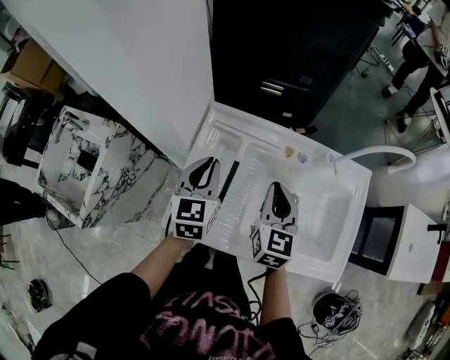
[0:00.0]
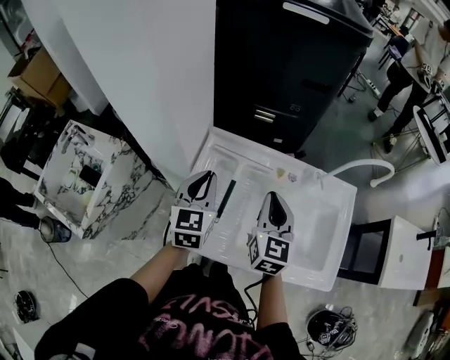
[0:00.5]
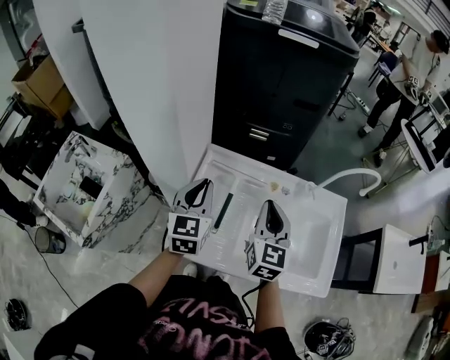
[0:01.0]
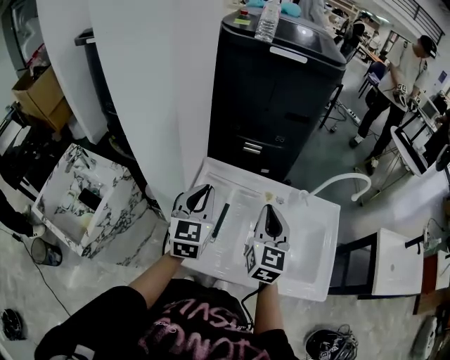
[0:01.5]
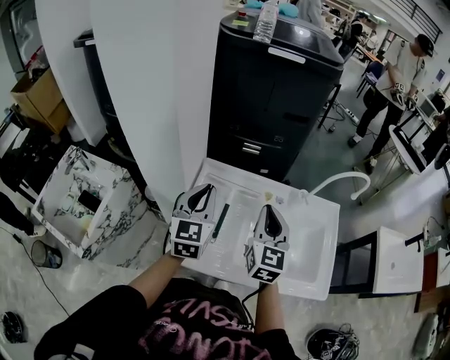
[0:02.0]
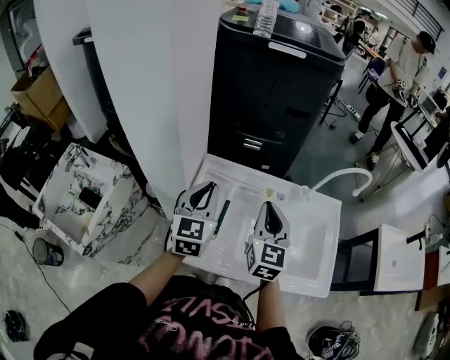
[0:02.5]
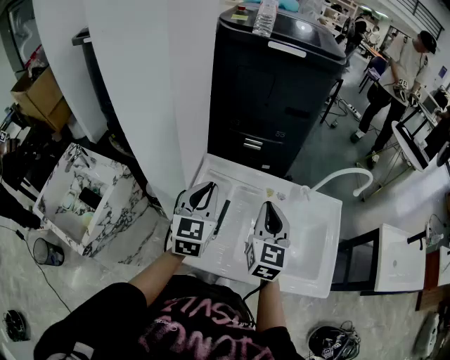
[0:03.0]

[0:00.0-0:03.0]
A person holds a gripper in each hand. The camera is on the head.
0:00.0 to 0:01.5: Both grippers move upward, approximately 10 cm.
0:01.5 to 0:03.0: Neither gripper changes place.

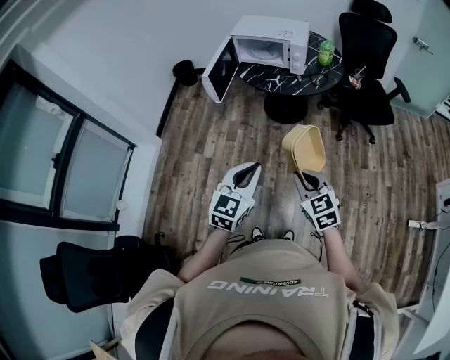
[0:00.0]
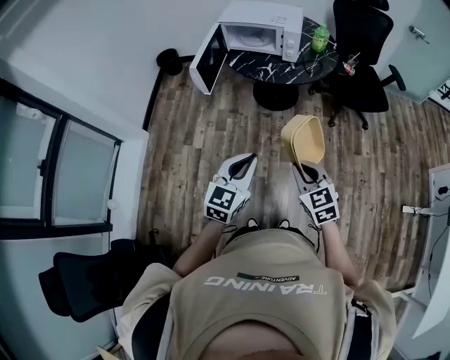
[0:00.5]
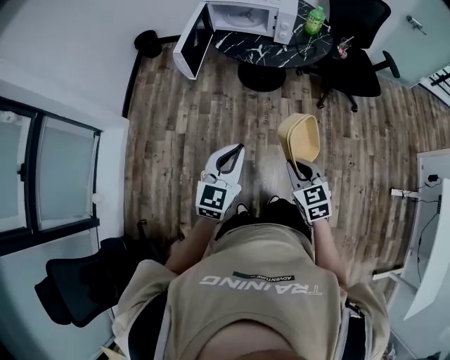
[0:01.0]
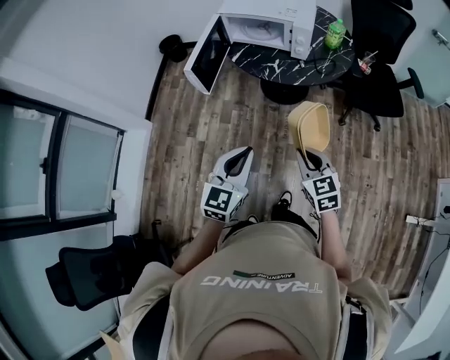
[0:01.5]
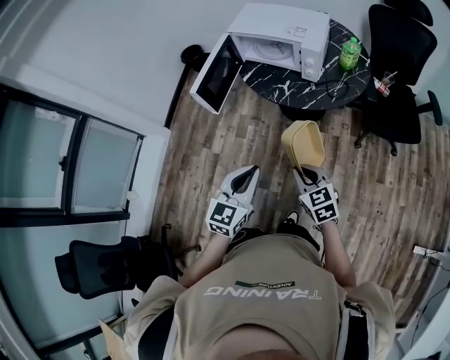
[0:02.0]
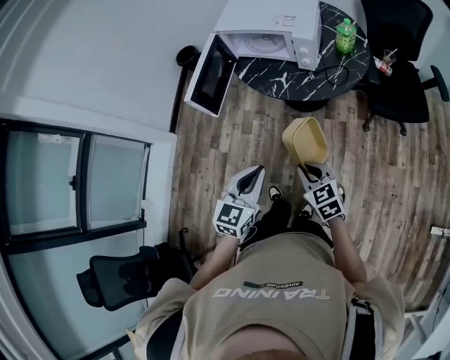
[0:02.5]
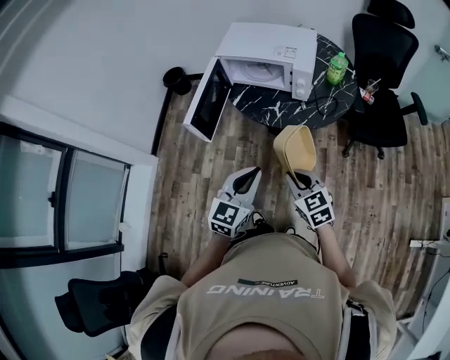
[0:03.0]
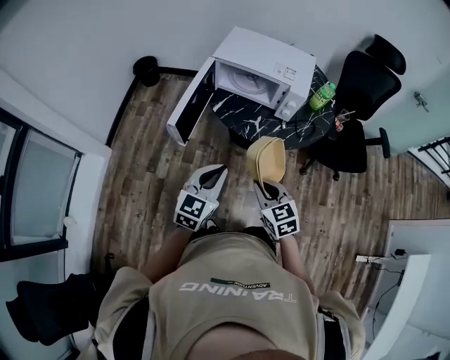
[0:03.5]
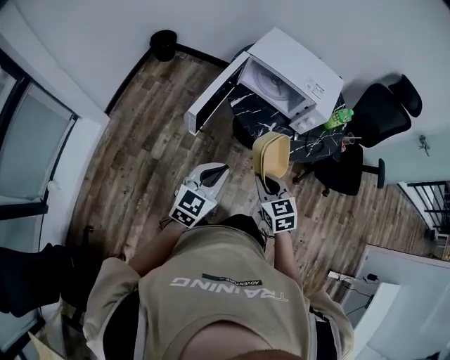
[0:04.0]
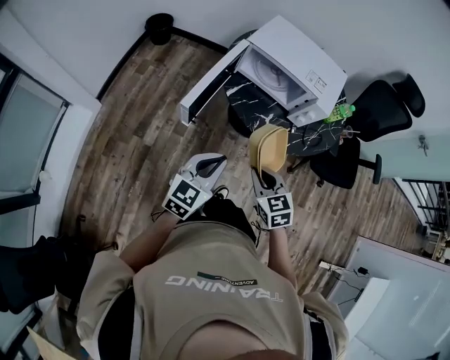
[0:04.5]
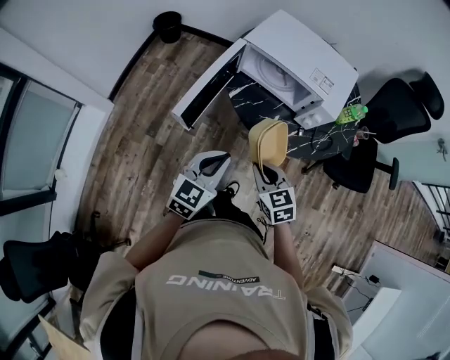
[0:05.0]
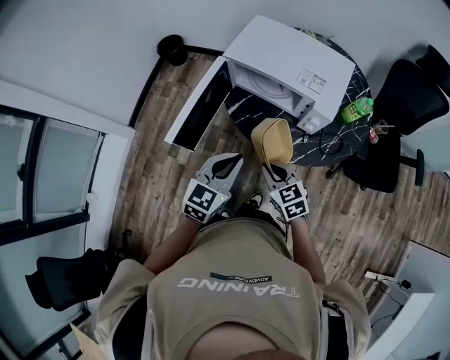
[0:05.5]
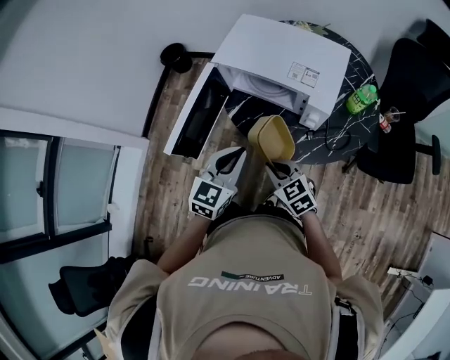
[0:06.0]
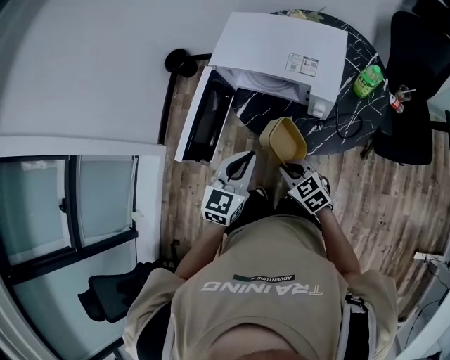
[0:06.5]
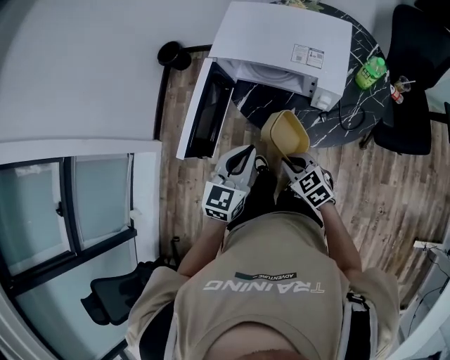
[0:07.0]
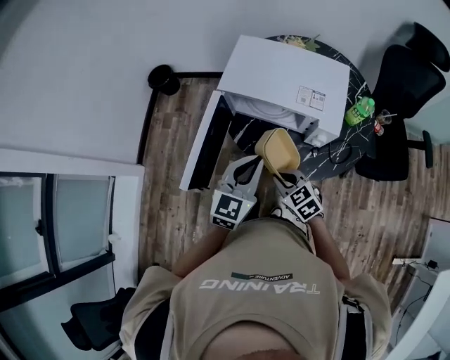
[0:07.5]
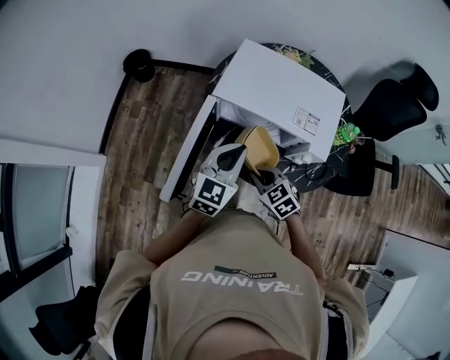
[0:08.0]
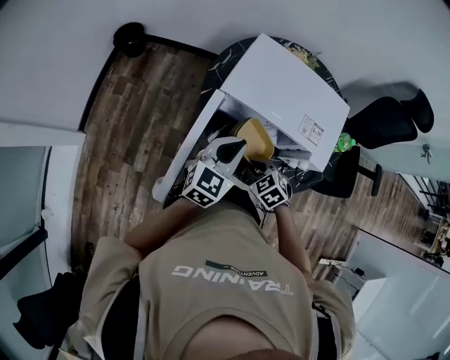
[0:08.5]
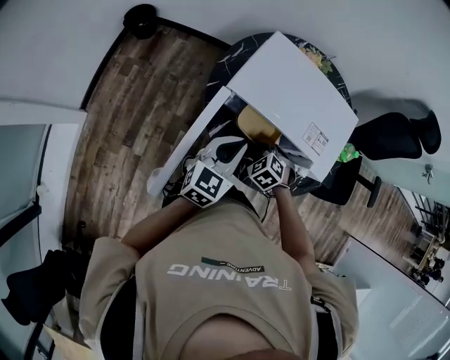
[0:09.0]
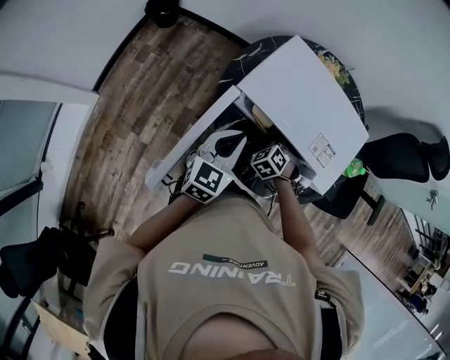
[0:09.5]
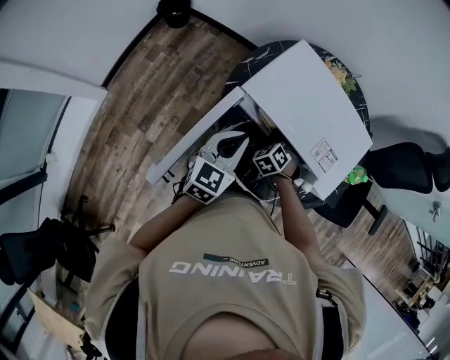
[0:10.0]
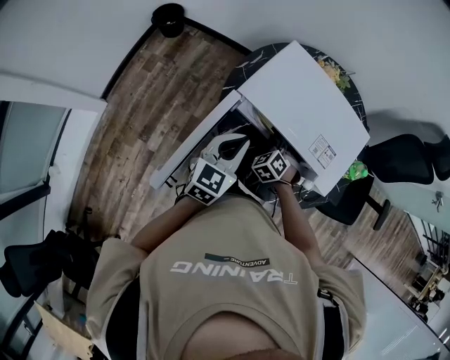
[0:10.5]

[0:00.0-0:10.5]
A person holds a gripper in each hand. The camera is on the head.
0:00.0 to 0:02.0: Both grippers move forward, some 20 cm.
0:02.0 to 0:04.0: Both grippers travel together forward and to the left, approximately 20 cm.
0:04.0 to 0:06.5: The right gripper is displaced forward, to the right and downward by approximately 15 cm. The left gripper goes roughly 20 cm forward and to the right.
0:06.5 to 0:08.5: The grippers both shift forward by about 20 cm. The right gripper rotates about 30 degrees.
0:08.5 to 0:10.5: The right gripper goes roughly 15 cm forward, and turns by roughly 30 degrees.

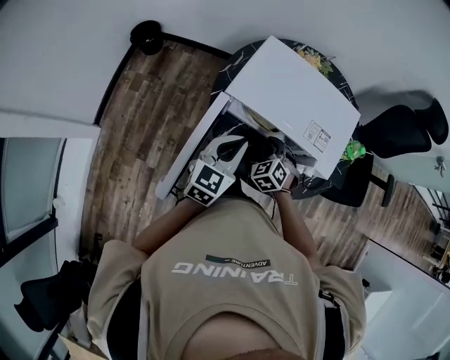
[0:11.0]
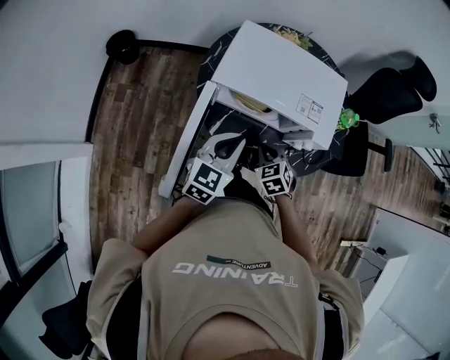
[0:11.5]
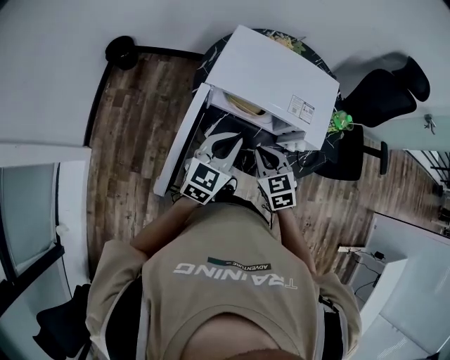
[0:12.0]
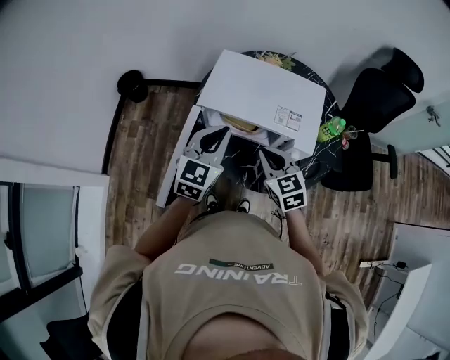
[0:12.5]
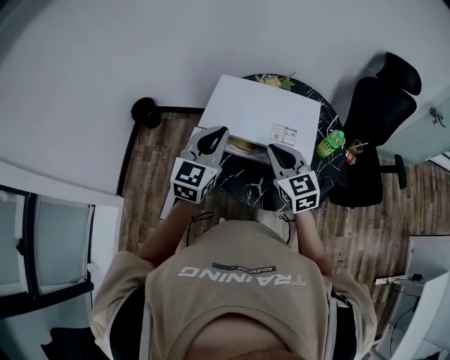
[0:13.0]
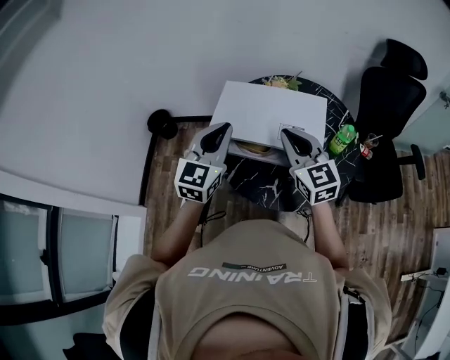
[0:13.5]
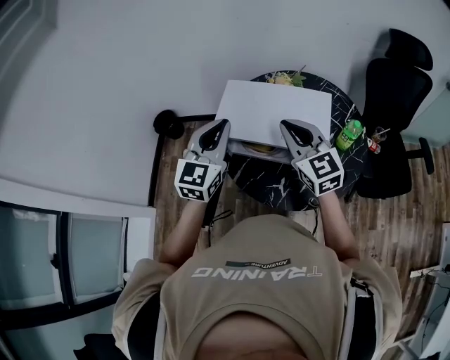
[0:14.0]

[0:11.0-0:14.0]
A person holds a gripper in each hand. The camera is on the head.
0:11.0 to 0:12.5: The right gripper shifts some 15 cm upward and backward, and changes its angle by some 40 degrees; the left gripper travels upward by approximately 10 cm.
0:12.5 to 0:14.0: The left gripper is displaced upward by about 10 cm; the right gripper is displaced upward and forward by approximately 15 cm, and rotates approximately 20 degrees.

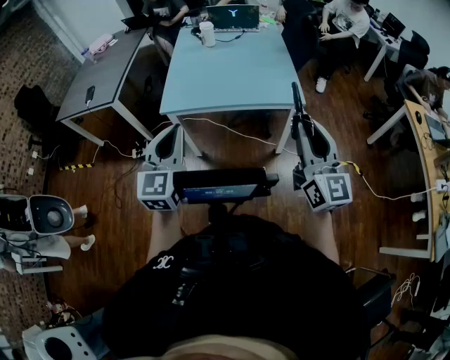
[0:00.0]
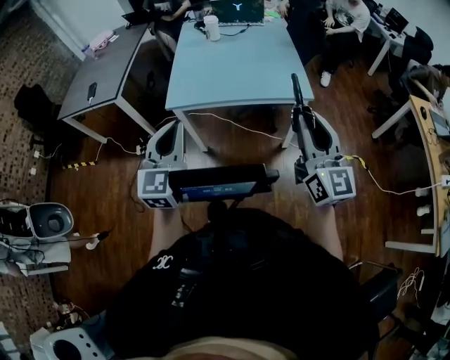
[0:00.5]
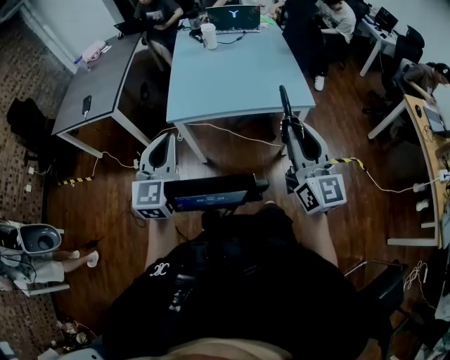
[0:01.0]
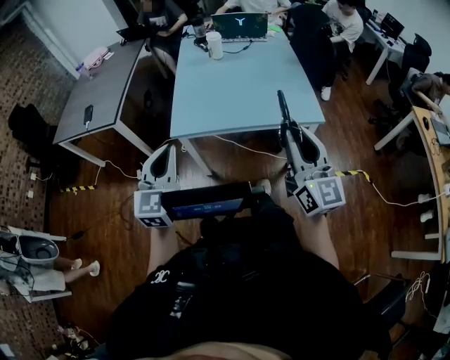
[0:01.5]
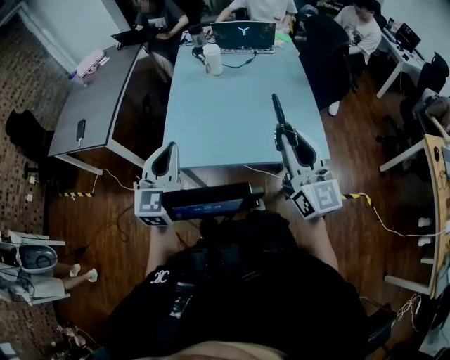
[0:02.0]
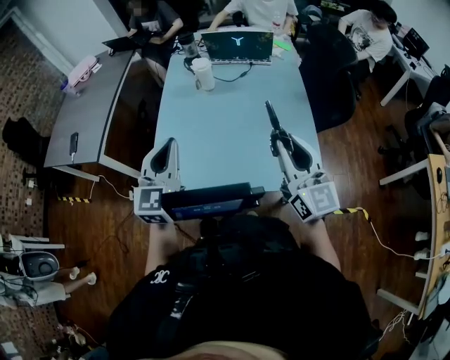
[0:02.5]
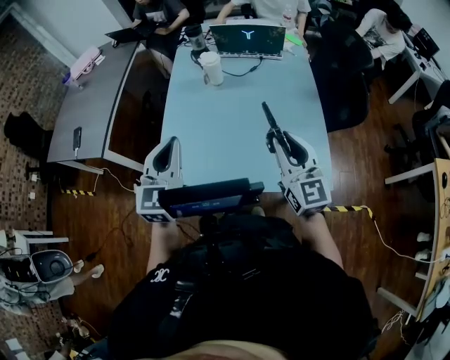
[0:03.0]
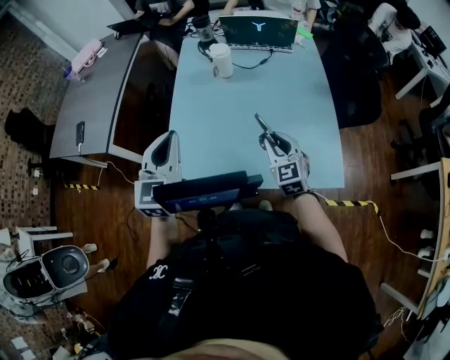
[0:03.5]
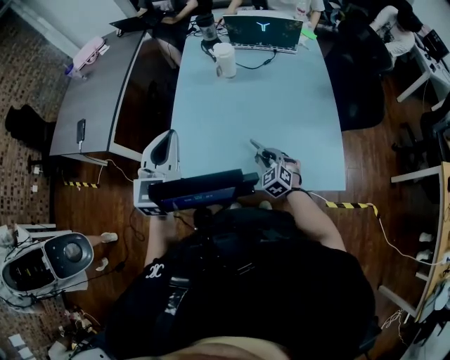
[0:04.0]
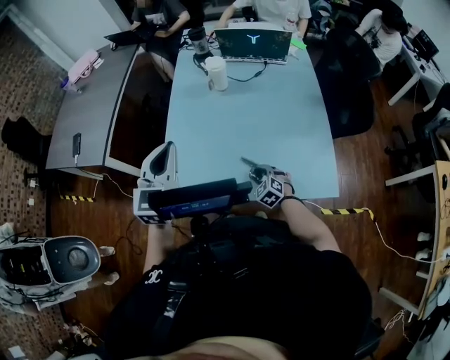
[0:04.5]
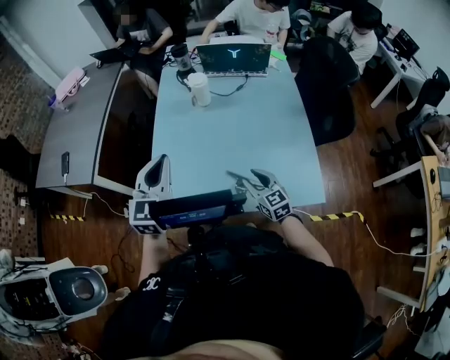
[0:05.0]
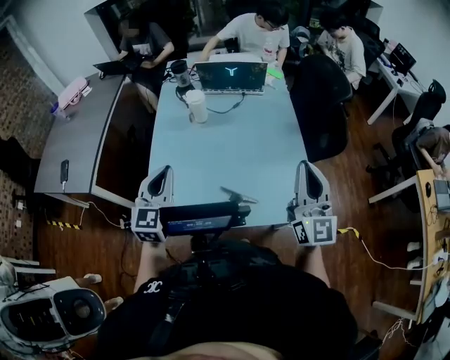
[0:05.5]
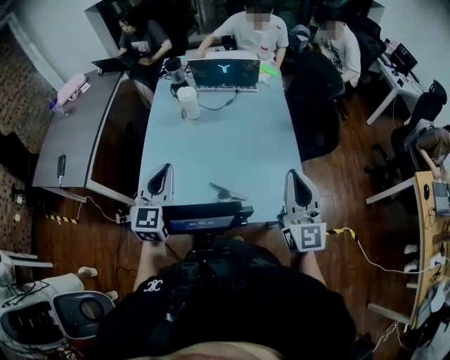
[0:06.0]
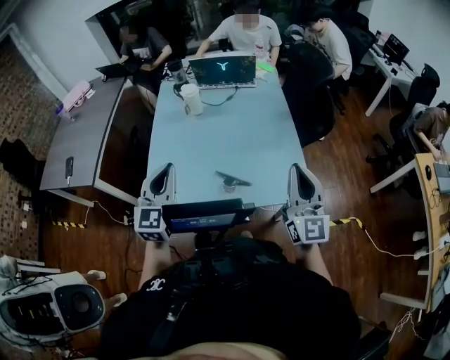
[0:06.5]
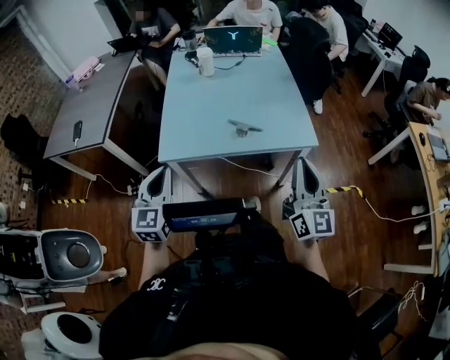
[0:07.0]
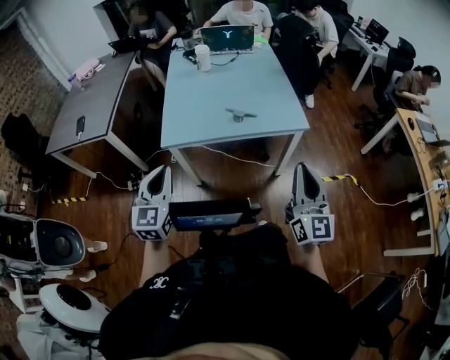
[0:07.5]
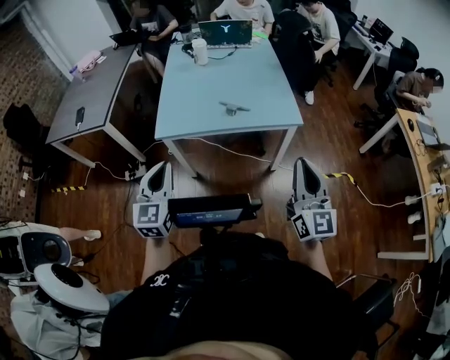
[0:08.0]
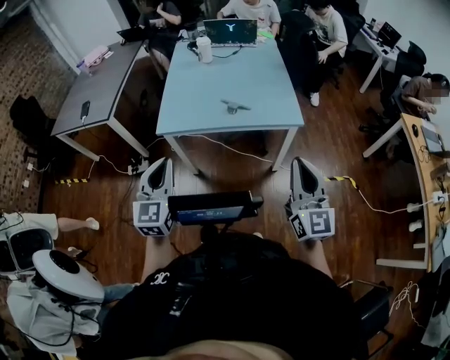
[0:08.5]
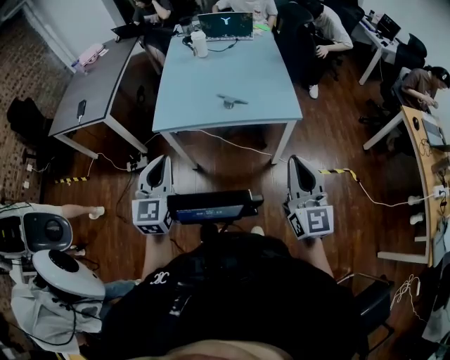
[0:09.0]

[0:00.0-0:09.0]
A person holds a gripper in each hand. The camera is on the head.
0:00.0 to 0:02.0: The two grippers go approximately 30 cm forward.
0:02.0 to 0:04.5: The left gripper moves forward, roughly 20 cm; the right gripper shifts about 50 cm downward and forward, tips its fingers downward by roughly 60 degrees, and opens up.
0:04.5 to 0:07.0: The left gripper goes approximately 30 cm backward, while the right gripper moves upward and backward, some 50 cm, tilts its fingers about 60 degrees upward, and closes up.
0:07.0 to 0:09.0: The right gripper shifts approximately 15 cm backward, while the left gripper moves backward and to the right, roughly 15 cm.

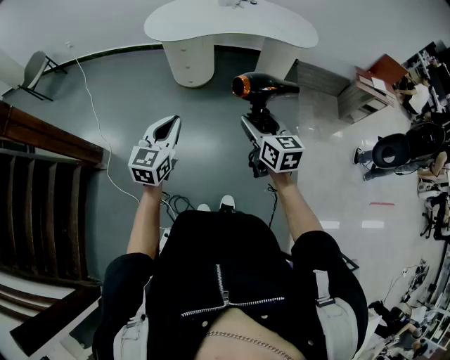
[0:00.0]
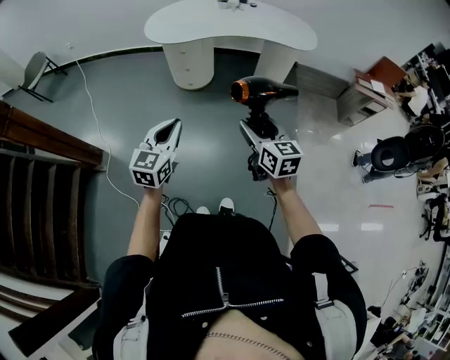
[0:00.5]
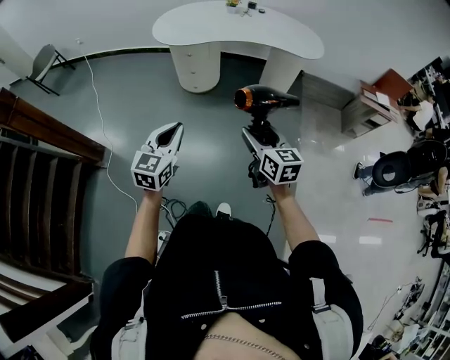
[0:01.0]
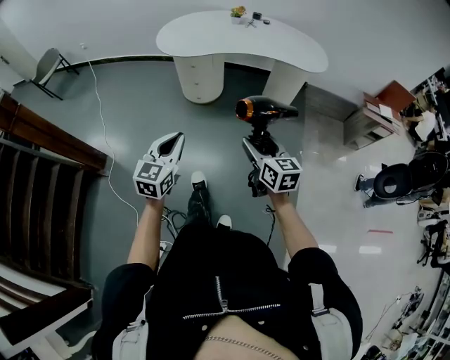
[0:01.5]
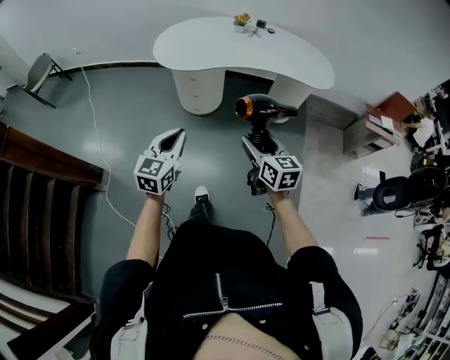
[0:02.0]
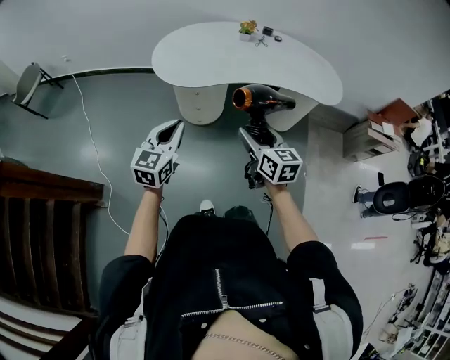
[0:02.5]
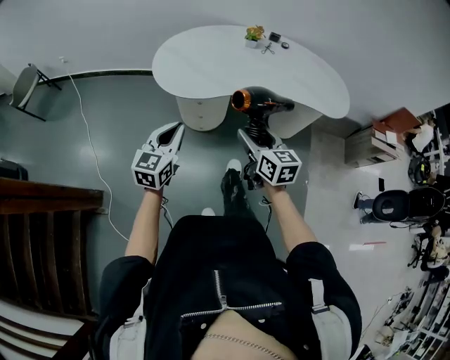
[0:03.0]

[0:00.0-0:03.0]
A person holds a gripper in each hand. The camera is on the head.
0:00.0 to 0:01.5: The grippers move only a little.
0:01.5 to 0:03.0: Both grippers travel together forward, roughly 35 cm.
